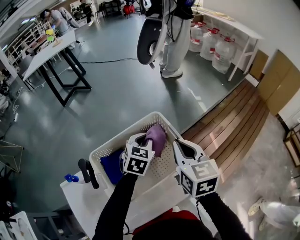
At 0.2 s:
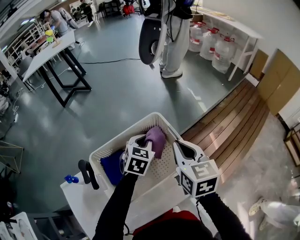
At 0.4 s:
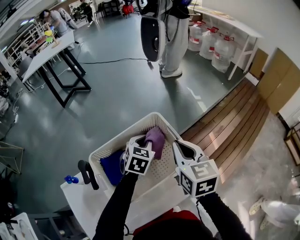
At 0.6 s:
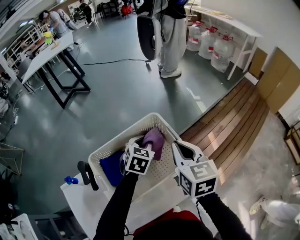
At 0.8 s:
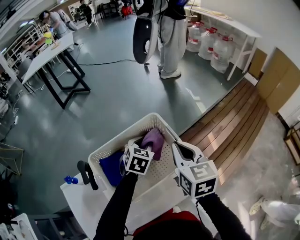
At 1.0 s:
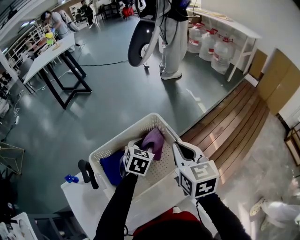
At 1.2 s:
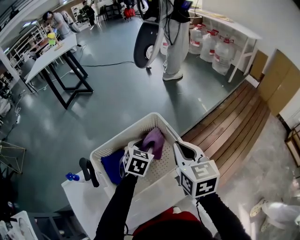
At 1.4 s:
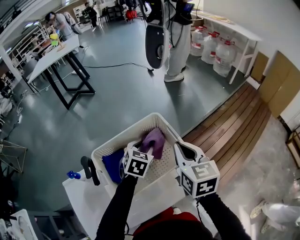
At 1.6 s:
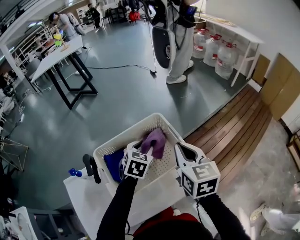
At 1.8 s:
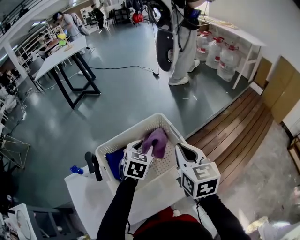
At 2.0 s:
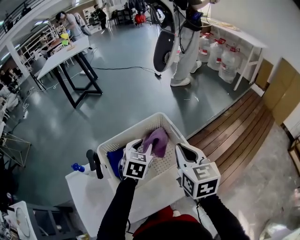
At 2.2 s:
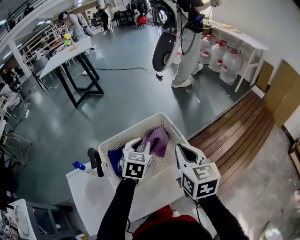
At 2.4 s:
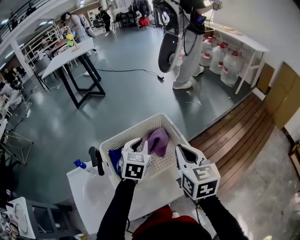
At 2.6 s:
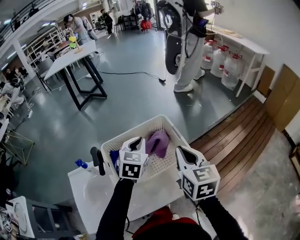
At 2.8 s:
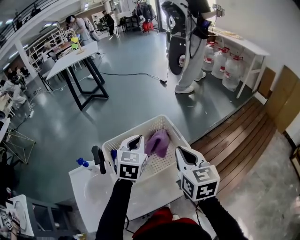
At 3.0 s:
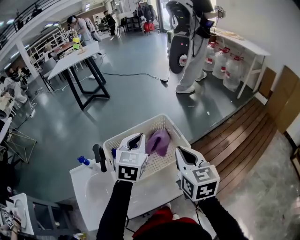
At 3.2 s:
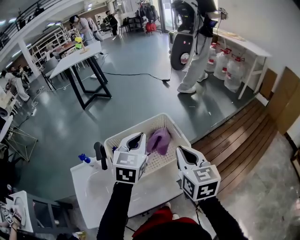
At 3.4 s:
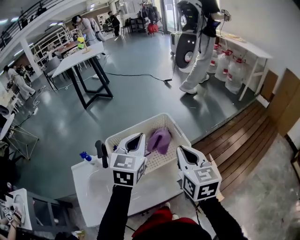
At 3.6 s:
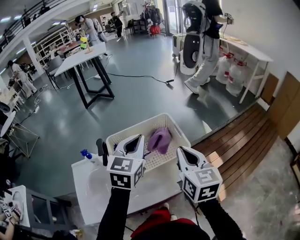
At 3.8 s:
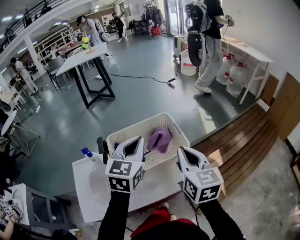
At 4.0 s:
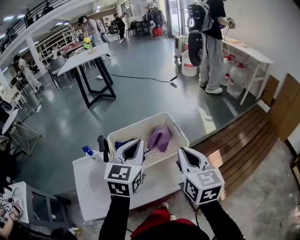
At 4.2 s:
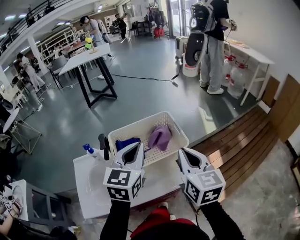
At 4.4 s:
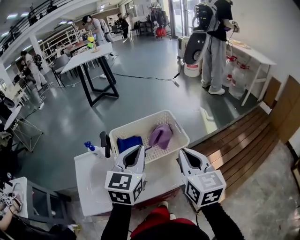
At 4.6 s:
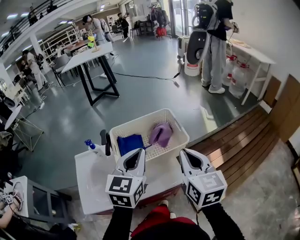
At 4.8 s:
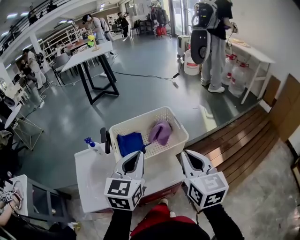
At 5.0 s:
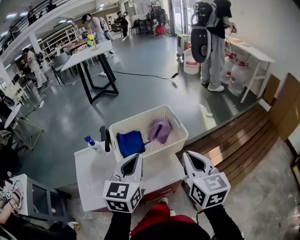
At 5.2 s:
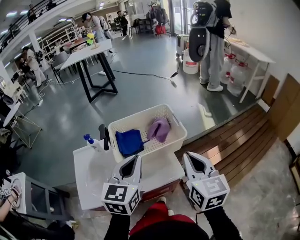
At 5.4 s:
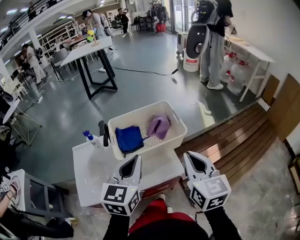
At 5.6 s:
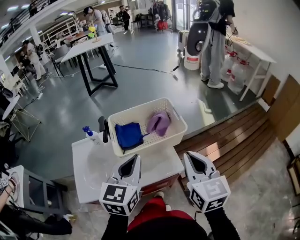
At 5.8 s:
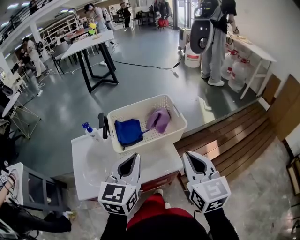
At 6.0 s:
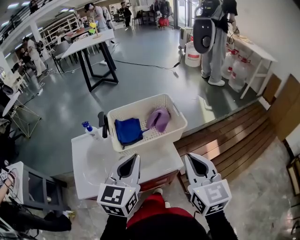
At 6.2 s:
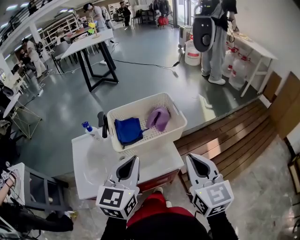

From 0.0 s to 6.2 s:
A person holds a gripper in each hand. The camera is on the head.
From 0.0 s to 1.6 s: The left gripper opens up.
From 1.6 s to 3.2 s: The right gripper moves backward, some 5 cm. The left gripper travels upward by about 15 cm, swivels some 20 degrees, and closes.
From 3.2 s to 4.6 s: The left gripper shifts some 15 cm backward. The right gripper travels backward by approximately 10 cm.
From 4.6 s to 6.2 s: Both grippers travel together backward, roughly 10 cm.

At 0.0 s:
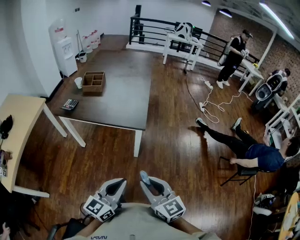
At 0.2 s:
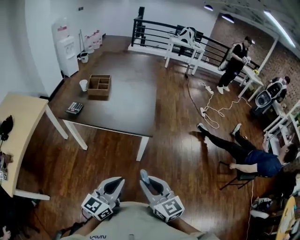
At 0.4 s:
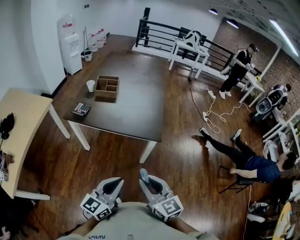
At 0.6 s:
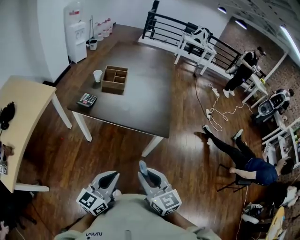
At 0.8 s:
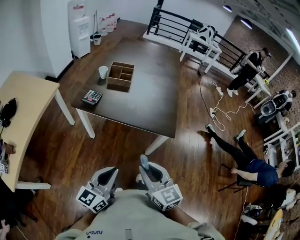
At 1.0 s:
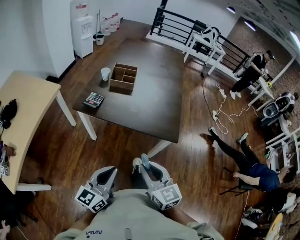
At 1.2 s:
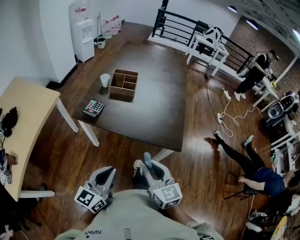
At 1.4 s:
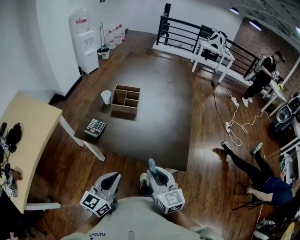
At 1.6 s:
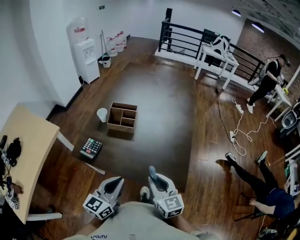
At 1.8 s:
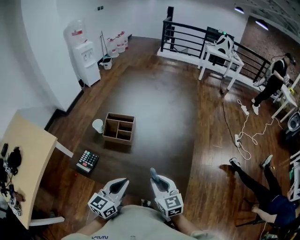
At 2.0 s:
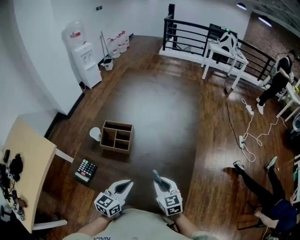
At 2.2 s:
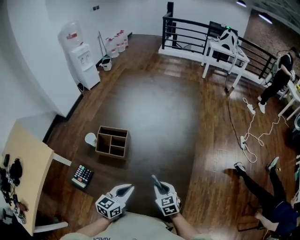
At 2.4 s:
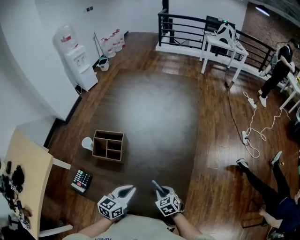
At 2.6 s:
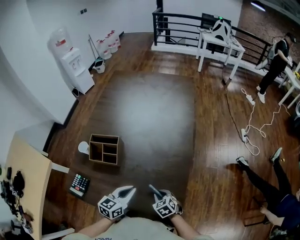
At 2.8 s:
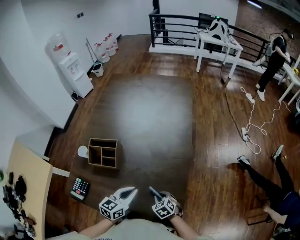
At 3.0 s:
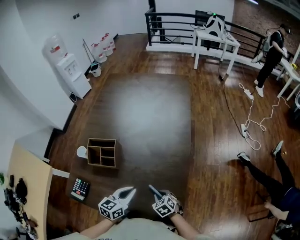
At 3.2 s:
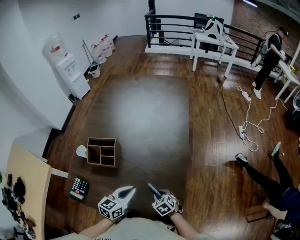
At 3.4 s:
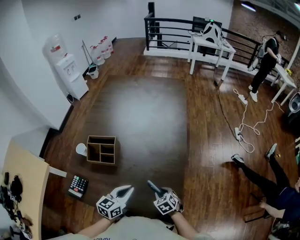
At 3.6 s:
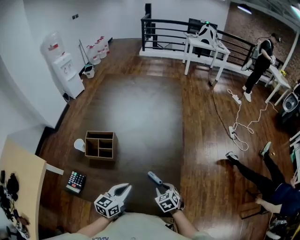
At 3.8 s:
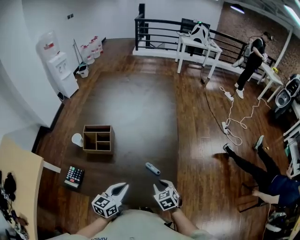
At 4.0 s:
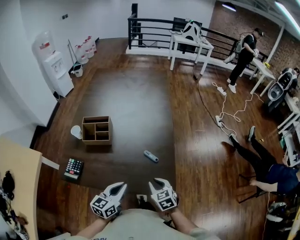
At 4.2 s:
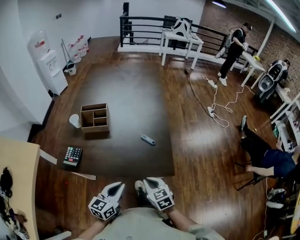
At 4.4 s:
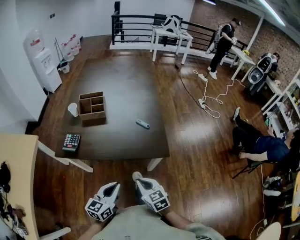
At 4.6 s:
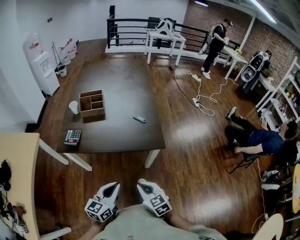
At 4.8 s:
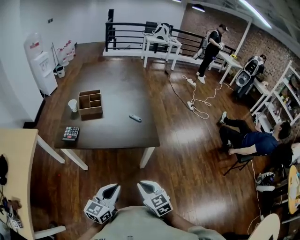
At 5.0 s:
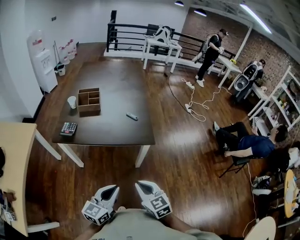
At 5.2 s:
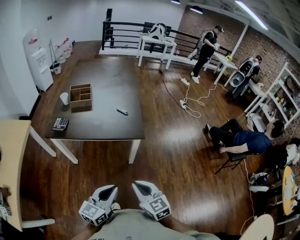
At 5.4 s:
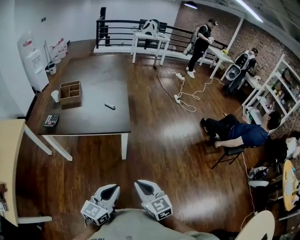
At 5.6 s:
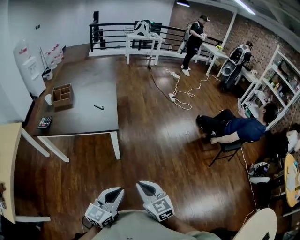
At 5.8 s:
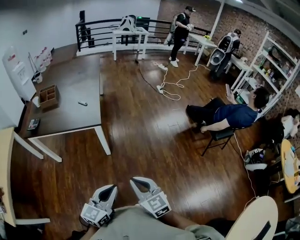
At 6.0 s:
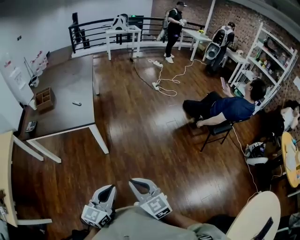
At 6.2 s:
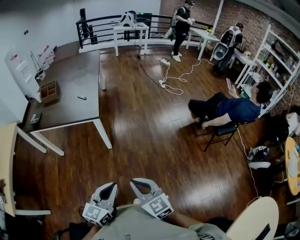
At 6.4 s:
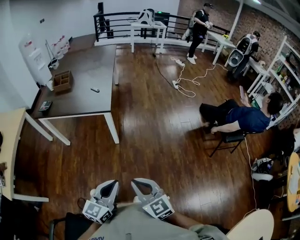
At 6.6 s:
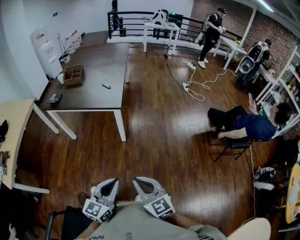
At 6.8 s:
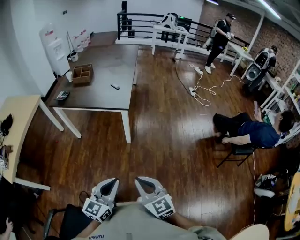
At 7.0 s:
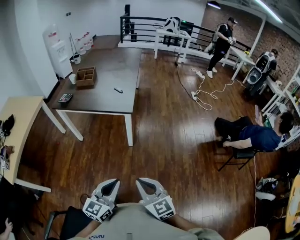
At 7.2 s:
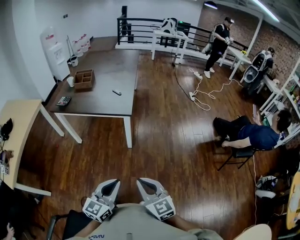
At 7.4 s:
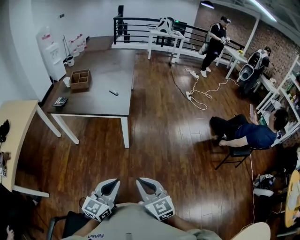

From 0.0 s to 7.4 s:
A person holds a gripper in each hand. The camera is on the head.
From 0.0 s to 1.4 s: Both grippers travel together forward and to the left, roughly 30 cm.
From 1.4 s to 3.0 s: The right gripper is displaced downward and forward by some 35 cm, and angles its fingers downward, by approximately 50 degrees, while the left gripper moves forward, downward and to the right, some 30 cm, and rotates about 30 degrees.
From 3.0 s to 4.4 s: The left gripper shifts some 30 cm backward, while the right gripper shifts approximately 30 cm backward and upward, and rotates approximately 30 degrees.
From 4.4 s to 6.0 s: The two grippers travel together, to the right and backward, some 40 cm.
From 6.0 s to 7.4 s: Both grippers move to the left, approximately 5 cm.

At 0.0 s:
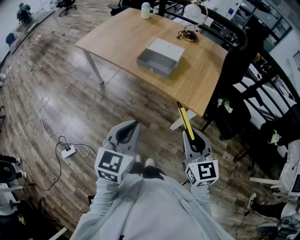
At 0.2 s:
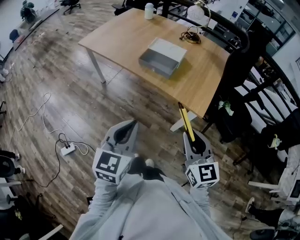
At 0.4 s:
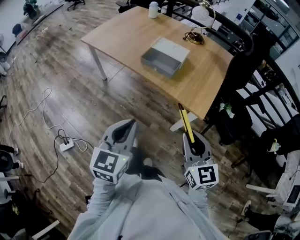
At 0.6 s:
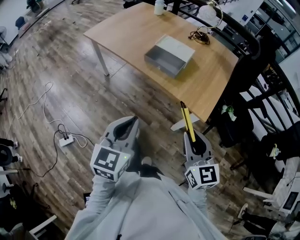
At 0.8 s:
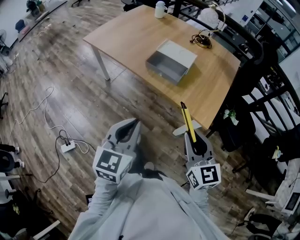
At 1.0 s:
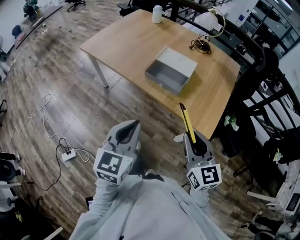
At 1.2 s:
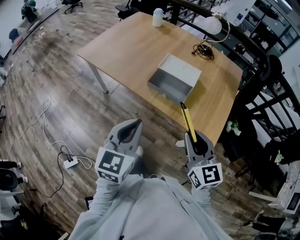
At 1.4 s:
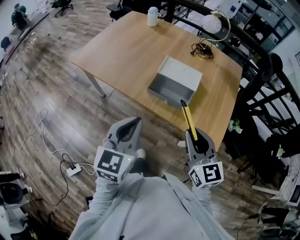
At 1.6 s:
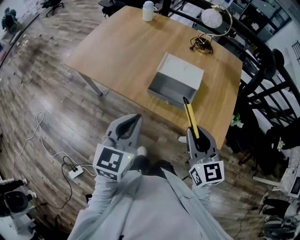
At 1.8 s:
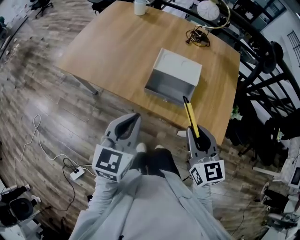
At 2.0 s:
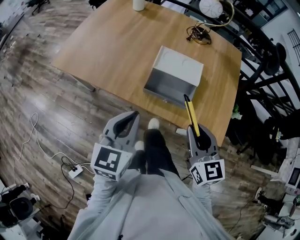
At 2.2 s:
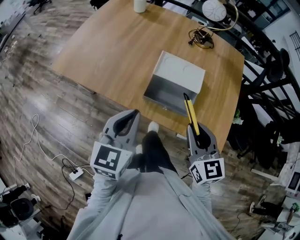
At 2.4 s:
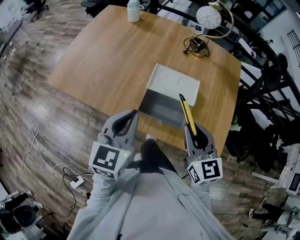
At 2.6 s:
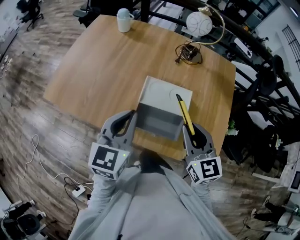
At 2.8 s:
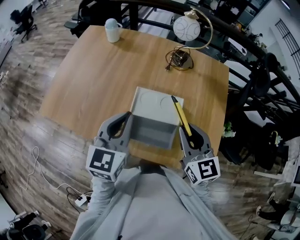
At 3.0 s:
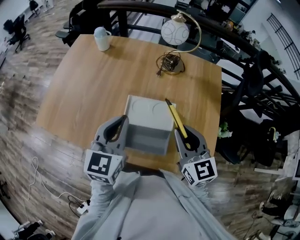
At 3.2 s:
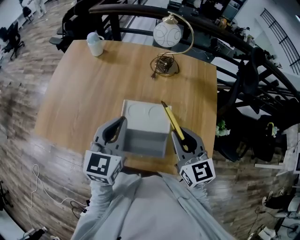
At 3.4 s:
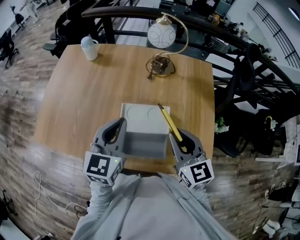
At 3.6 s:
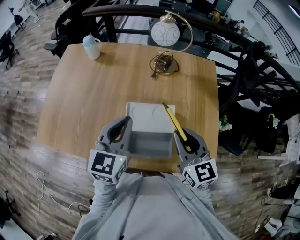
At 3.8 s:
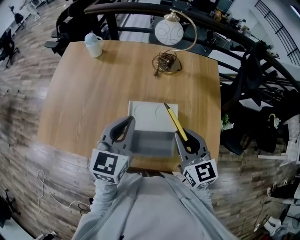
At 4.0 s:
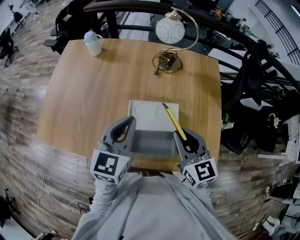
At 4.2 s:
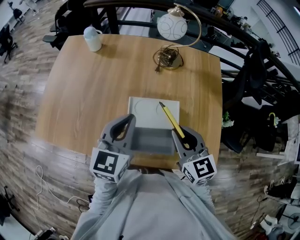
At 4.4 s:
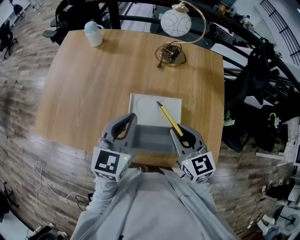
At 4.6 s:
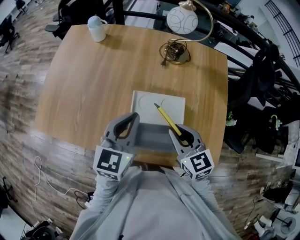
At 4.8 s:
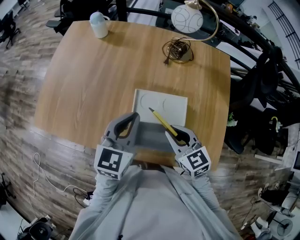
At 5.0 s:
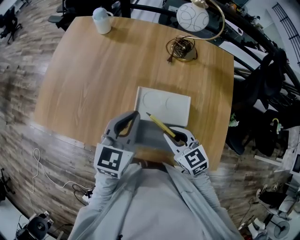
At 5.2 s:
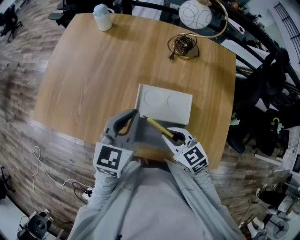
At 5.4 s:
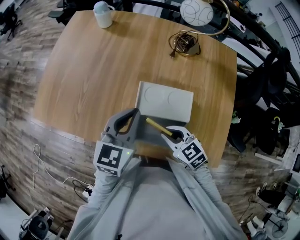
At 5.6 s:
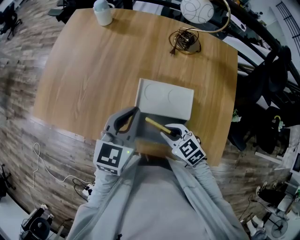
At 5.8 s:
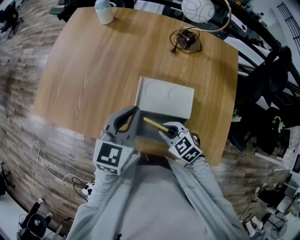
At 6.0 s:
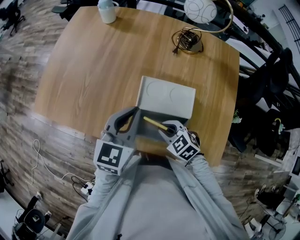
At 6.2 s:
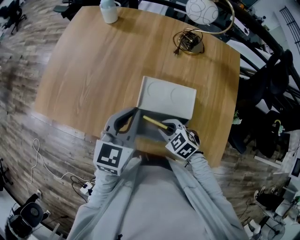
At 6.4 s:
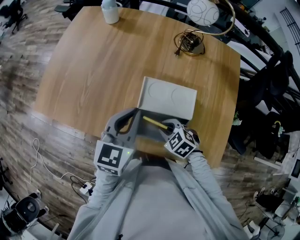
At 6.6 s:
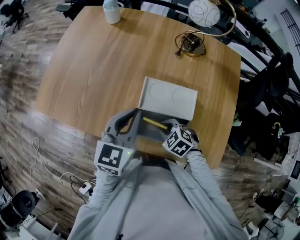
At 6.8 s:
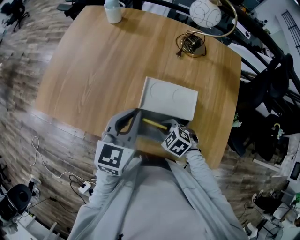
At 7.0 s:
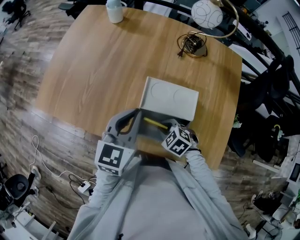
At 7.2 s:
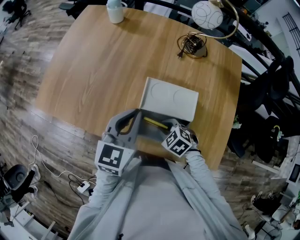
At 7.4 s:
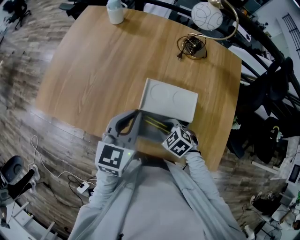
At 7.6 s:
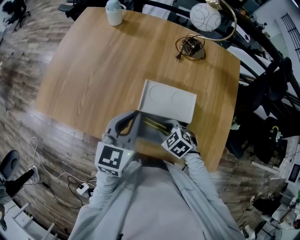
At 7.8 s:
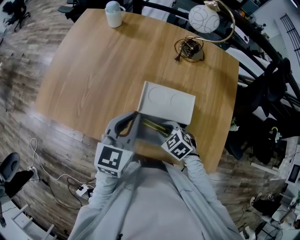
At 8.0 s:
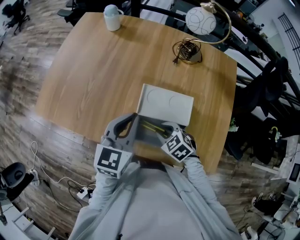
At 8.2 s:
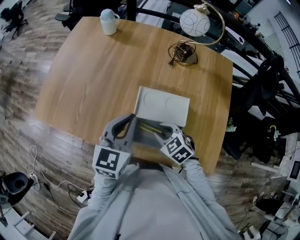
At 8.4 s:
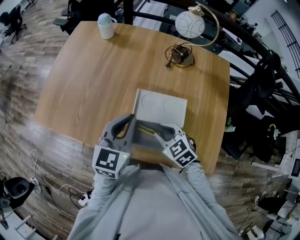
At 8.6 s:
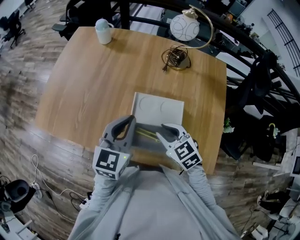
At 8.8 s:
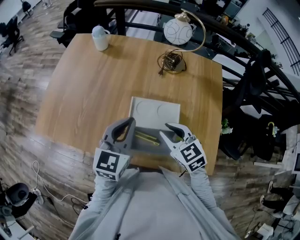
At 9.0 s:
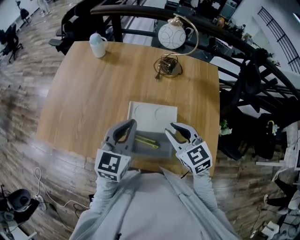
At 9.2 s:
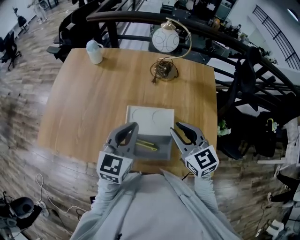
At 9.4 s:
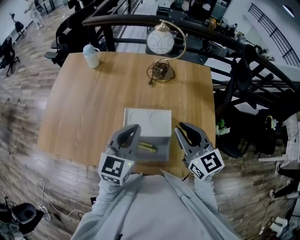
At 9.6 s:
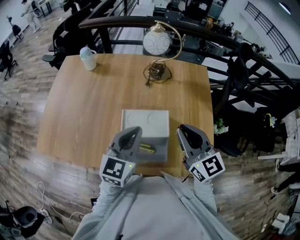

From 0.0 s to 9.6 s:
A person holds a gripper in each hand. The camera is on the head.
From 0.0 s to 1.6 s: The grippers both shift forward and to the left by some 30 cm.
From 1.6 s to 3.2 s: Both grippers move forward, some 25 cm.
From 3.2 s to 4.8 s: The left gripper moves downward, approximately 5 cm; the right gripper travels downward and to the left by some 15 cm, and swivels some 20 degrees.
From 4.8 s to 6.4 s: The right gripper goes approximately 15 cm downward, and rotates roughly 40 degrees.
From 6.4 s to 8.0 s: The grippers make only small movements.
From 8.0 s to 9.6 s: The left gripper moves to the right and upward, roughly 10 cm, while the right gripper is displaced upward and to the right by approximately 30 cm, and tilts its fingers roughly 50 degrees upward.
